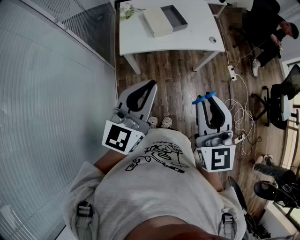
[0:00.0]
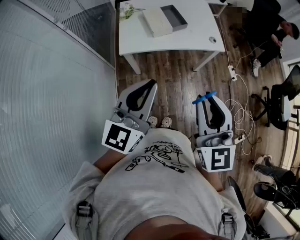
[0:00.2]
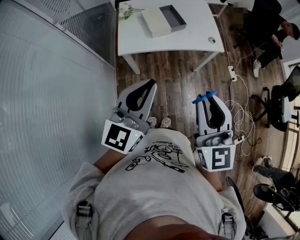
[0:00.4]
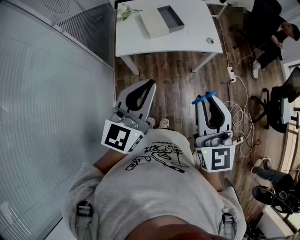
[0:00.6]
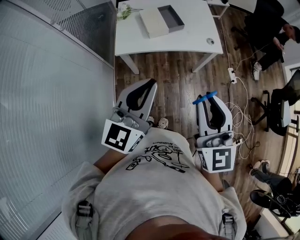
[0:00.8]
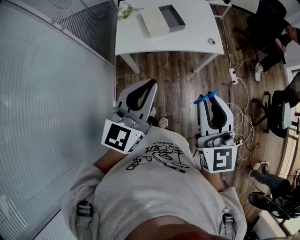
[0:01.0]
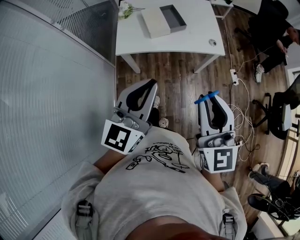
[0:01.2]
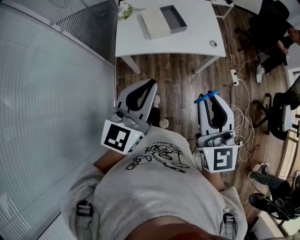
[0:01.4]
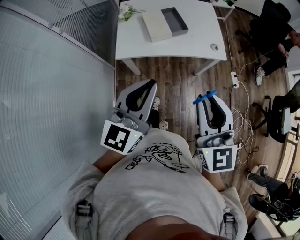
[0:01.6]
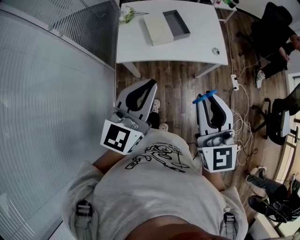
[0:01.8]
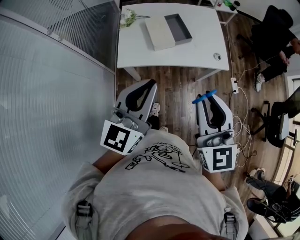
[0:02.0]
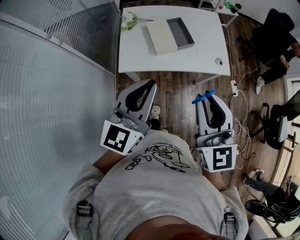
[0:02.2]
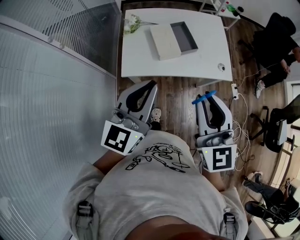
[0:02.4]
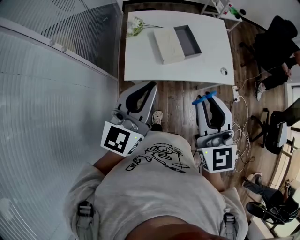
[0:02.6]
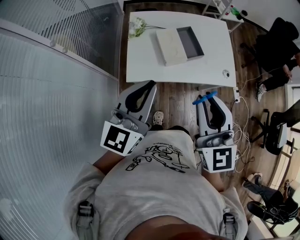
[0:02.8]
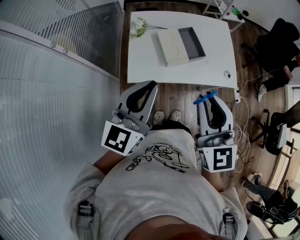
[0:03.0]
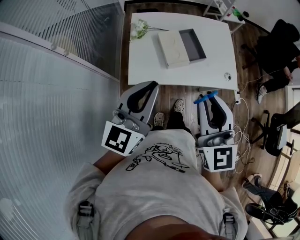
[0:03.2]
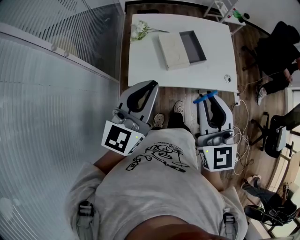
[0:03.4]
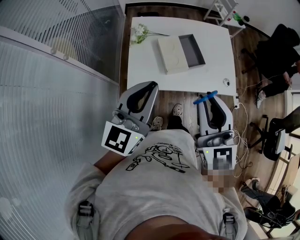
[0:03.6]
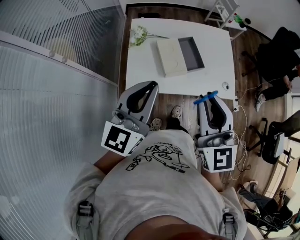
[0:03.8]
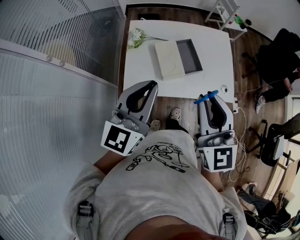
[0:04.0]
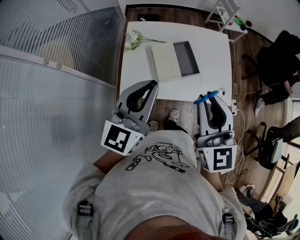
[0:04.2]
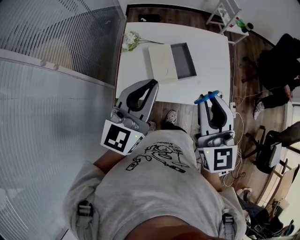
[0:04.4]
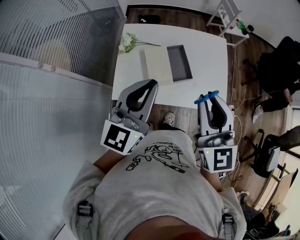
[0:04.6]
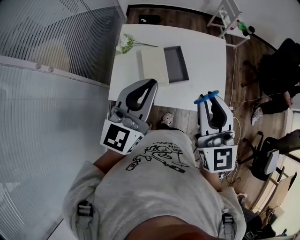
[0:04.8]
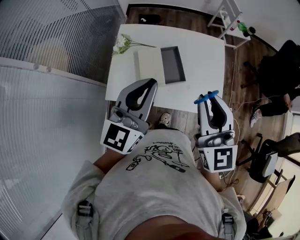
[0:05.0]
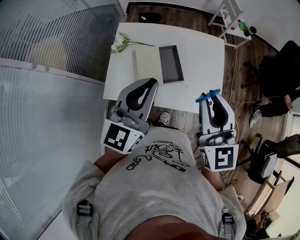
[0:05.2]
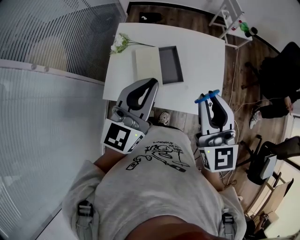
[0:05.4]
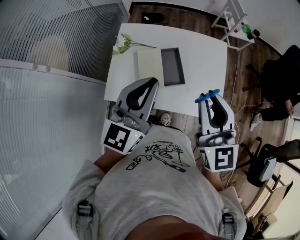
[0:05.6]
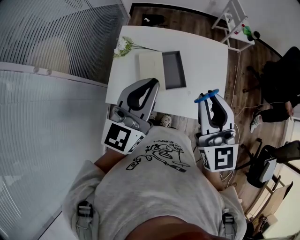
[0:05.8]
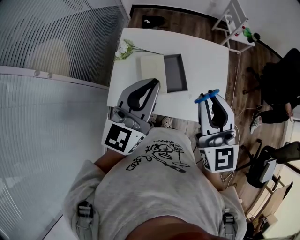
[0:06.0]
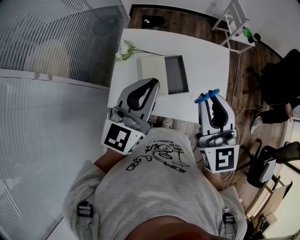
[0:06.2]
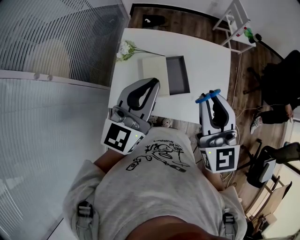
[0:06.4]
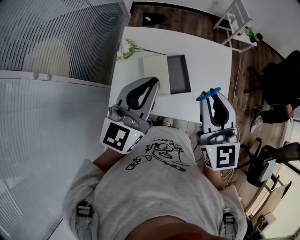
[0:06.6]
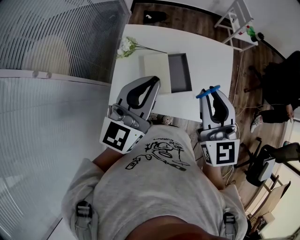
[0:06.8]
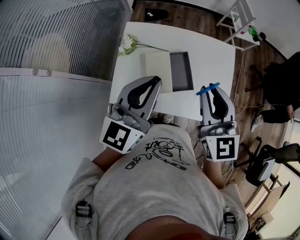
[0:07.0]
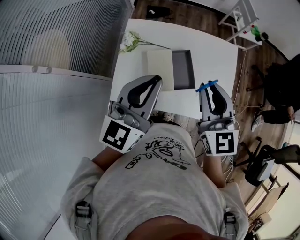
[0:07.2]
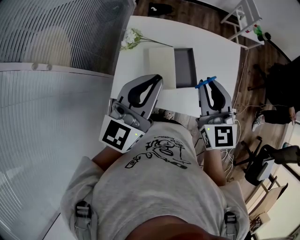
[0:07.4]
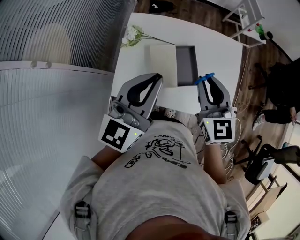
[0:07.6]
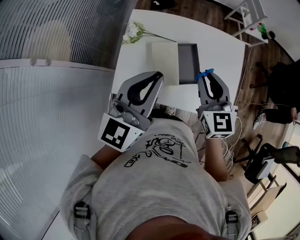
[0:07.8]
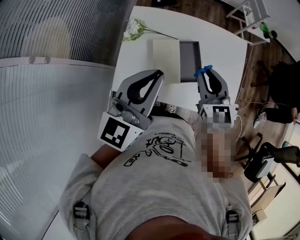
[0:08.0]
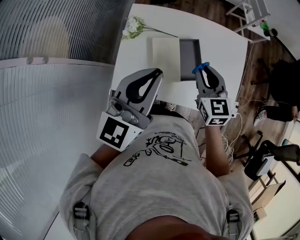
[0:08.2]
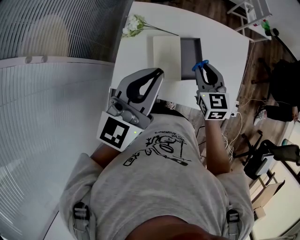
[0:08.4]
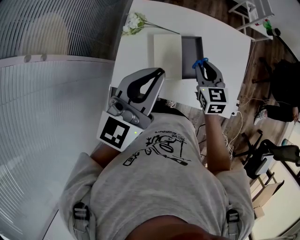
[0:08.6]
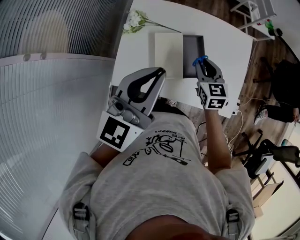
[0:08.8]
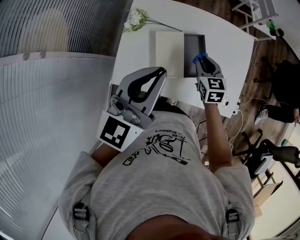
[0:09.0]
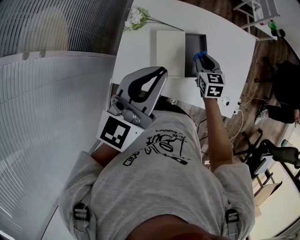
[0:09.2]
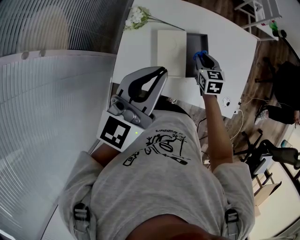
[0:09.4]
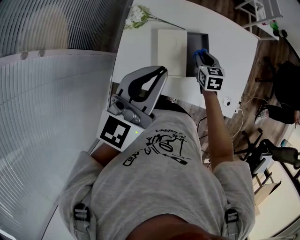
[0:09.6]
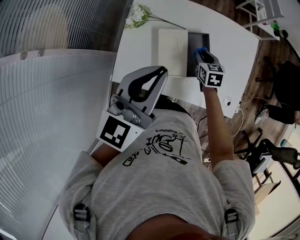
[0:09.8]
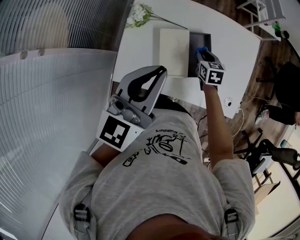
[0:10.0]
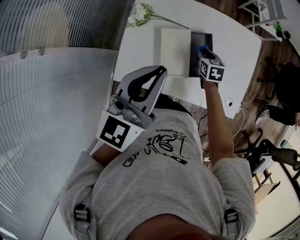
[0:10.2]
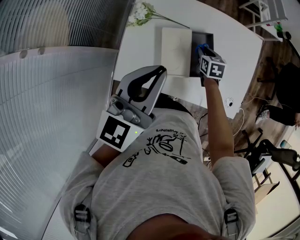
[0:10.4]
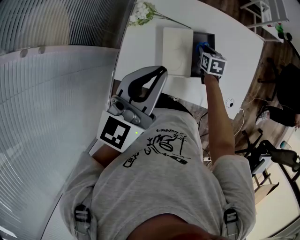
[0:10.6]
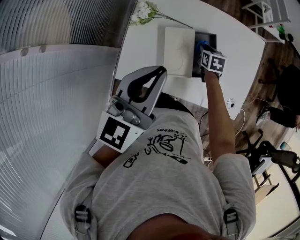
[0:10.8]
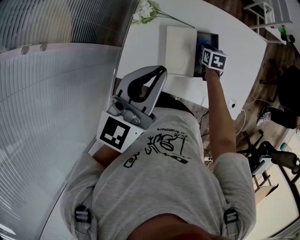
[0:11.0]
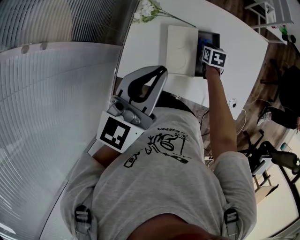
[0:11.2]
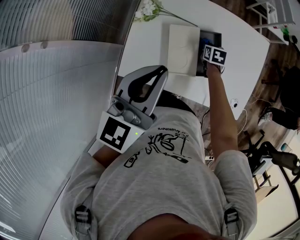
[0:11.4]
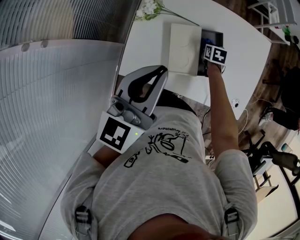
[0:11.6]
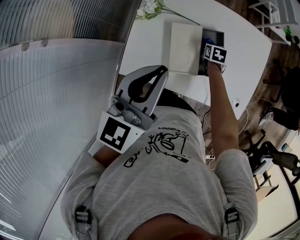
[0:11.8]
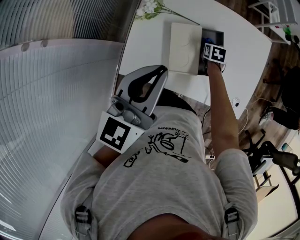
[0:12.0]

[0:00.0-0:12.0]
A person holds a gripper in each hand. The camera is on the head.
0:00.0 to 0:01.6: The grippers both shift forward by about 10 cm.
0:01.6 to 0:03.0: The two grippers go about 20 cm forward and to the left.
0:03.0 to 0:04.4: The two grippers go approximately 15 cm forward and to the right.
0:04.4 to 0:06.0: Both grippers move forward and to the right, some 10 cm.
0:06.0 to 0:07.6: The right gripper is displaced downward and forward by about 10 cm. The left gripper moves some 5 cm.
0:07.6 to 0:09.0: The right gripper moves downward, about 20 cm, and swivels about 20 degrees.
0:09.0 to 0:10.4: The right gripper heads downward and forward, covering some 10 cm.
0:10.4 to 0:12.0: The right gripper moves downward, approximately 5 cm.

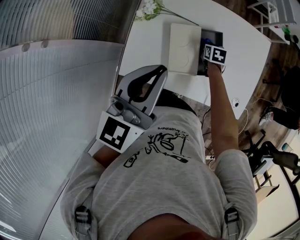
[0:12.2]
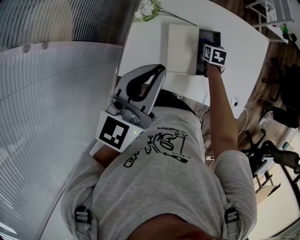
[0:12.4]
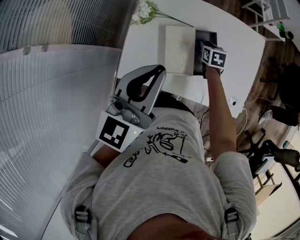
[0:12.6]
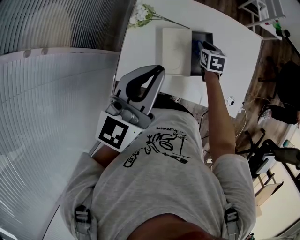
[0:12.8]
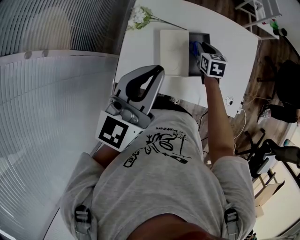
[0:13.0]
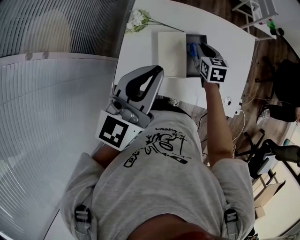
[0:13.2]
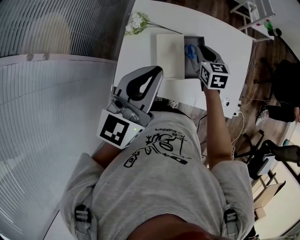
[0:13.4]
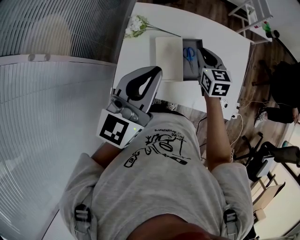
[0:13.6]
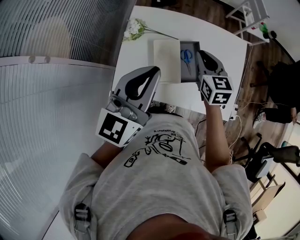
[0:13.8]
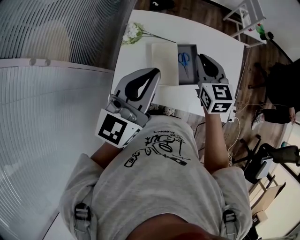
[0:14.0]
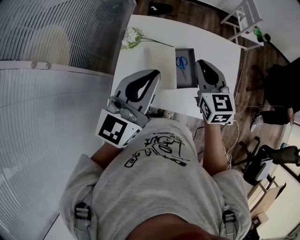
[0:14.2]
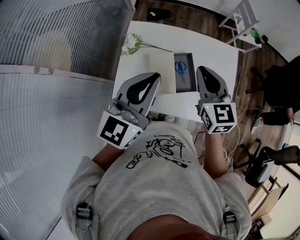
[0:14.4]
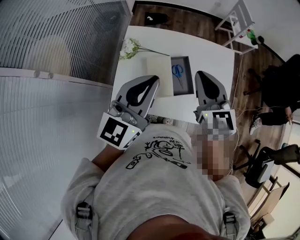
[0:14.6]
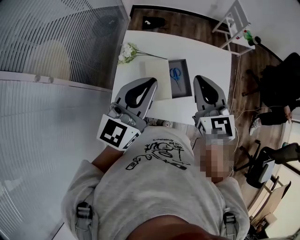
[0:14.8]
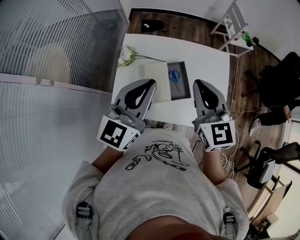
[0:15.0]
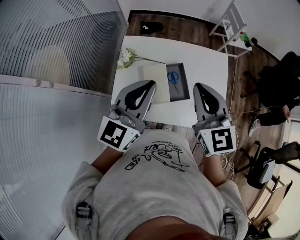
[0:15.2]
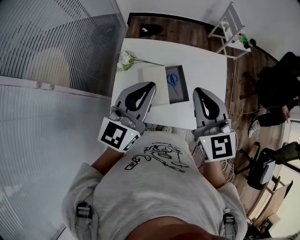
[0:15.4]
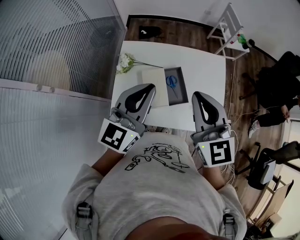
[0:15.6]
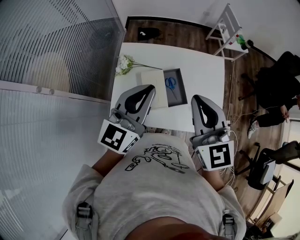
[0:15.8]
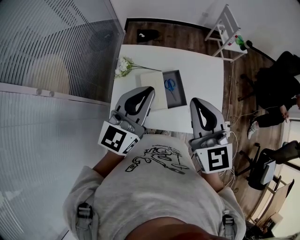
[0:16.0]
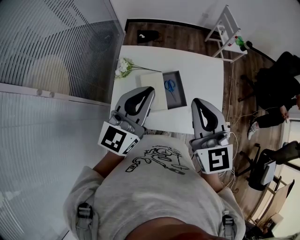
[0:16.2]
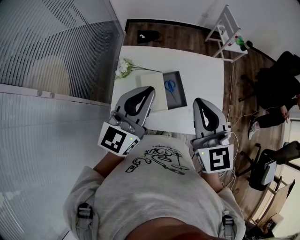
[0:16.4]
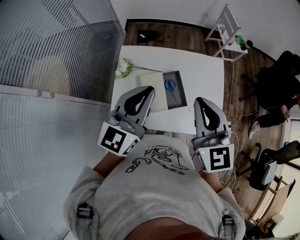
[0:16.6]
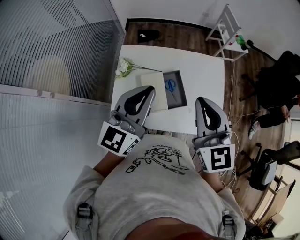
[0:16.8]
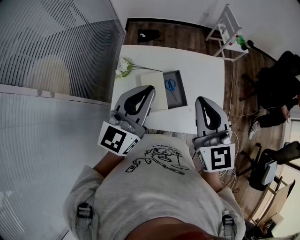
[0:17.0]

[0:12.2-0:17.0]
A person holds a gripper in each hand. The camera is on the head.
0:12.2 to 0:13.8: The right gripper heads upward, covering about 25 cm, and points its fingers some 30 degrees further upward.
0:13.8 to 0:15.4: The left gripper changes place by approximately 5 cm. Meanwhile the right gripper is displaced upward and backward by roughly 25 cm.
0:15.4 to 0:17.0: The grippers make only small movements.

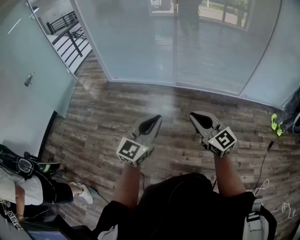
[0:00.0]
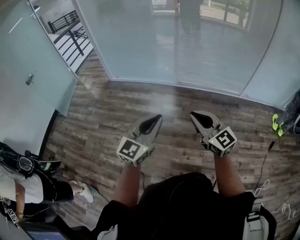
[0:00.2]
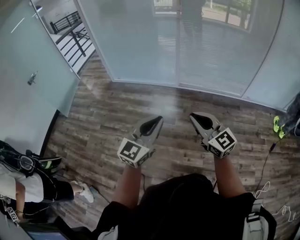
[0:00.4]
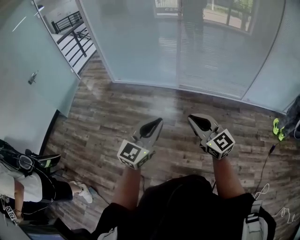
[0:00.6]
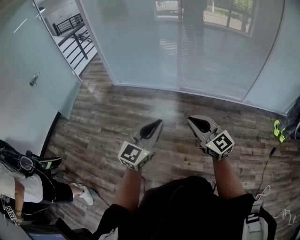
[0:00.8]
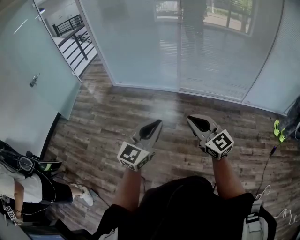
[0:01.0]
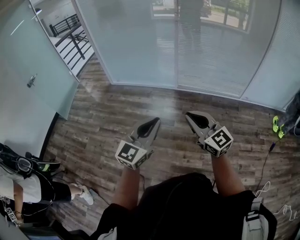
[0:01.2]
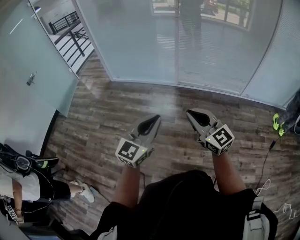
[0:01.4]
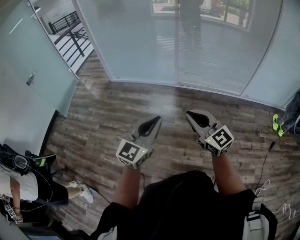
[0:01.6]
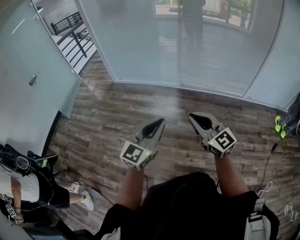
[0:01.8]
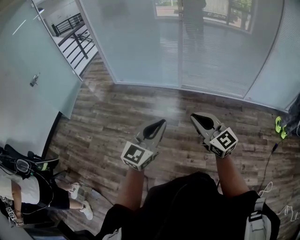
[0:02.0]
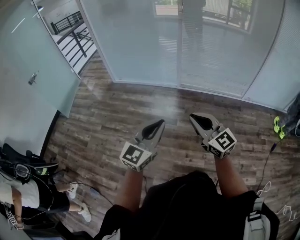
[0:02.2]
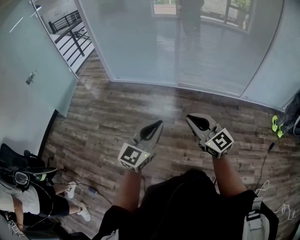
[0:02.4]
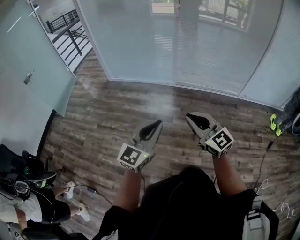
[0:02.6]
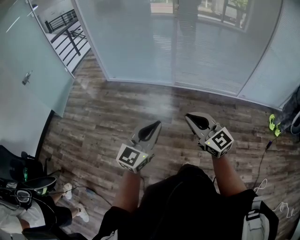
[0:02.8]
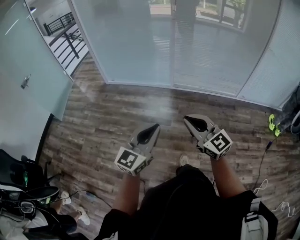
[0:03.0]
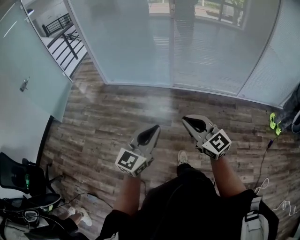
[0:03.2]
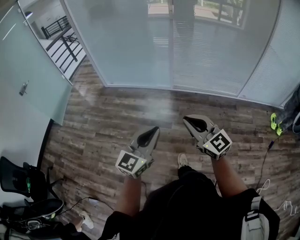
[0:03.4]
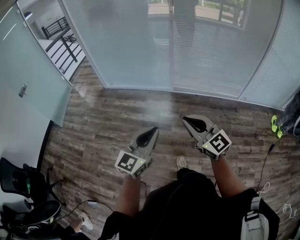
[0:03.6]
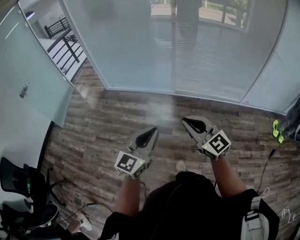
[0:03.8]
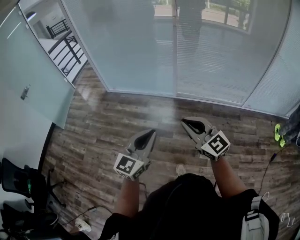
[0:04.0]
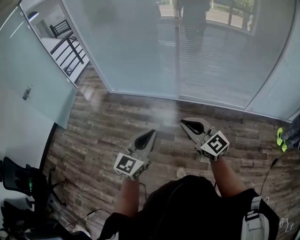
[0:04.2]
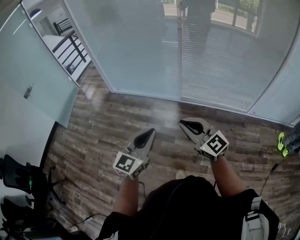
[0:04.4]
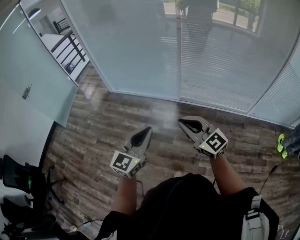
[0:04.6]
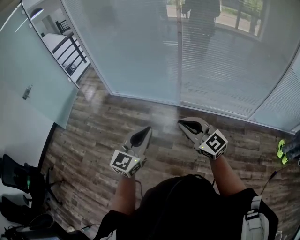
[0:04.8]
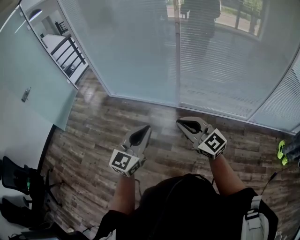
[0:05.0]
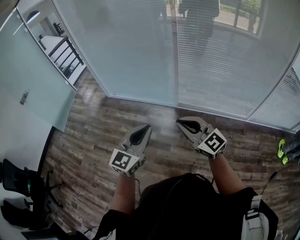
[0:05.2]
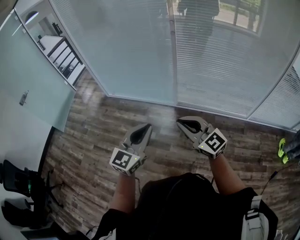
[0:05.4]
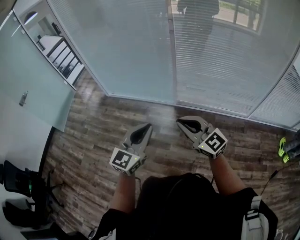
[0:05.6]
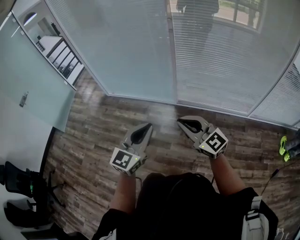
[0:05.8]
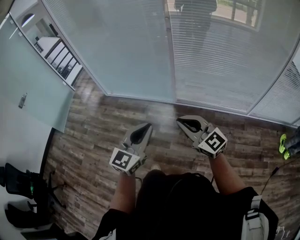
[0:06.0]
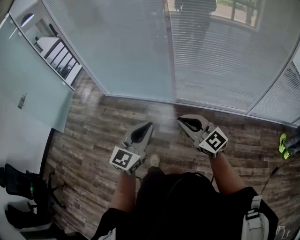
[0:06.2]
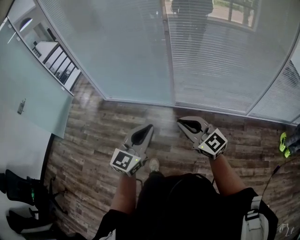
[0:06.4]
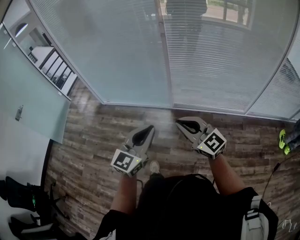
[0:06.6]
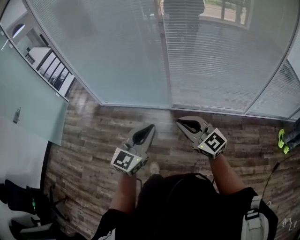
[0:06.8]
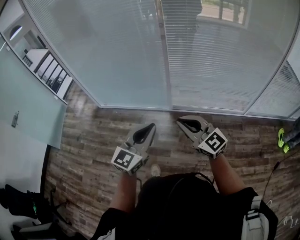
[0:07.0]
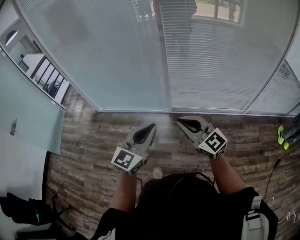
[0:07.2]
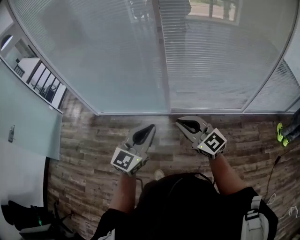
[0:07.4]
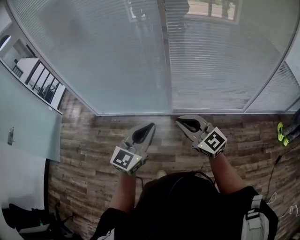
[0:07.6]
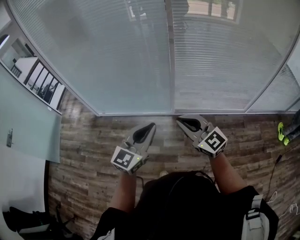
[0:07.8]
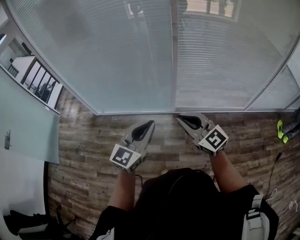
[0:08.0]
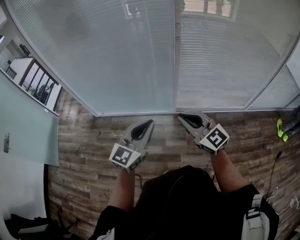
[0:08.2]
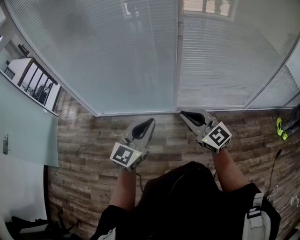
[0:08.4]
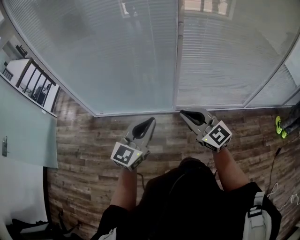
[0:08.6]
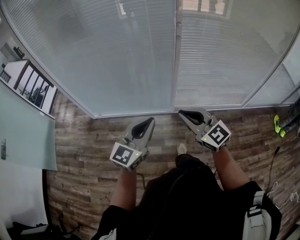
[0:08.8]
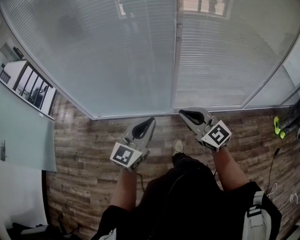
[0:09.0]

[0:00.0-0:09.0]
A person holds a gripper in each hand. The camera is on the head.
0:00.0 to 0:01.6: Neither gripper changes place.
0:01.6 to 0:03.0: There are only small adjustments of the grippers.
0:03.0 to 0:04.4: Both grippers travel together forward, roughly 20 cm.
0:04.4 to 0:06.0: The two grippers go approximately 10 cm forward and to the right.
0:06.0 to 0:07.6: The left gripper is displaced forward by about 15 cm, while the right gripper goes approximately 15 cm forward and to the left.
0:07.6 to 0:09.0: The two grippers go some 10 cm to the left and forward.
